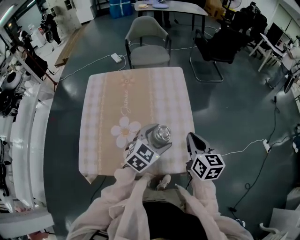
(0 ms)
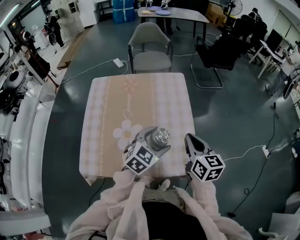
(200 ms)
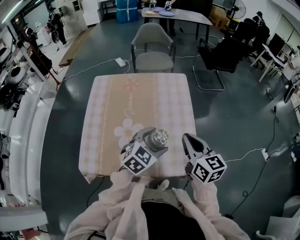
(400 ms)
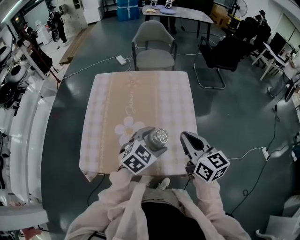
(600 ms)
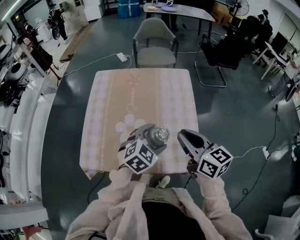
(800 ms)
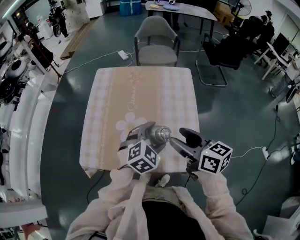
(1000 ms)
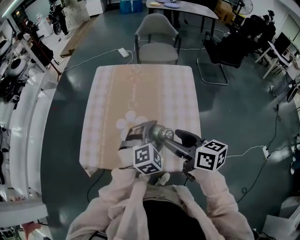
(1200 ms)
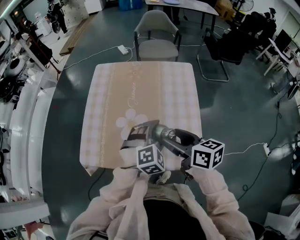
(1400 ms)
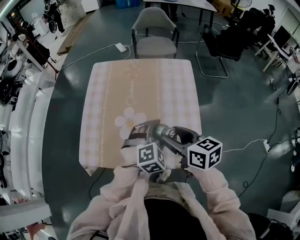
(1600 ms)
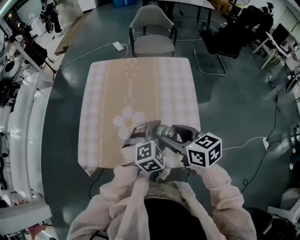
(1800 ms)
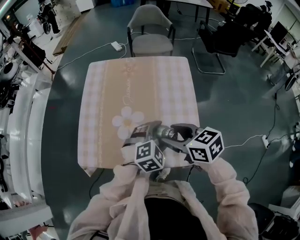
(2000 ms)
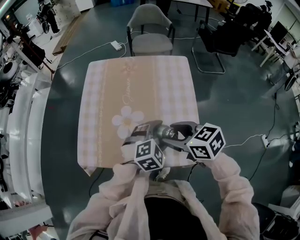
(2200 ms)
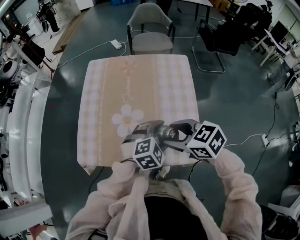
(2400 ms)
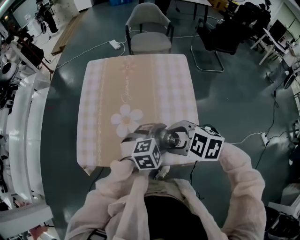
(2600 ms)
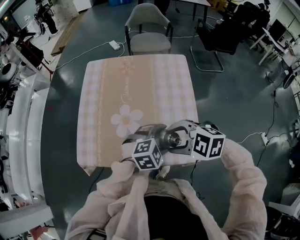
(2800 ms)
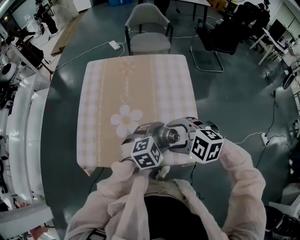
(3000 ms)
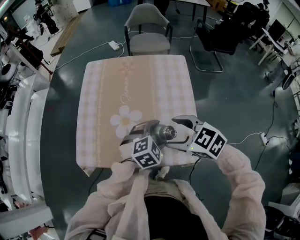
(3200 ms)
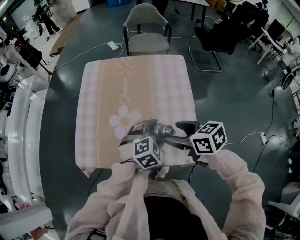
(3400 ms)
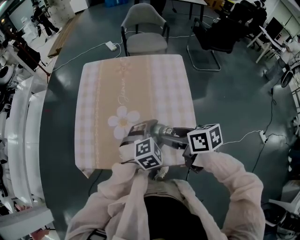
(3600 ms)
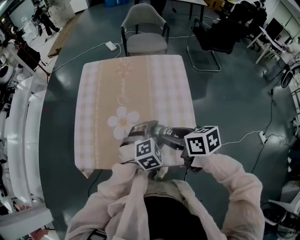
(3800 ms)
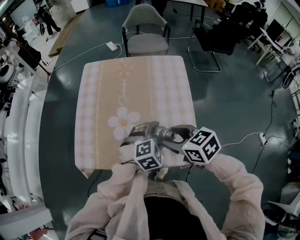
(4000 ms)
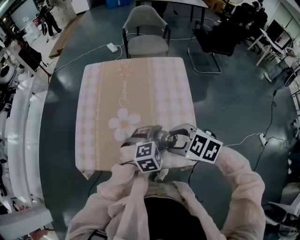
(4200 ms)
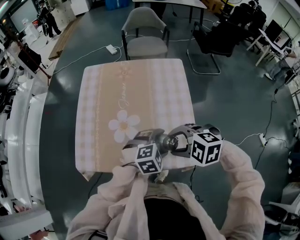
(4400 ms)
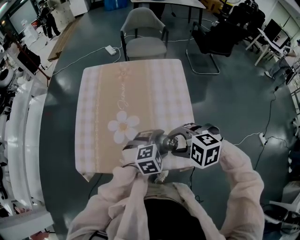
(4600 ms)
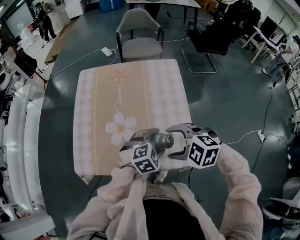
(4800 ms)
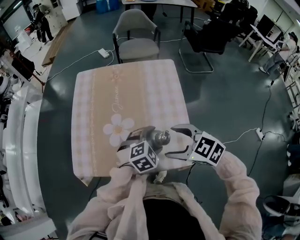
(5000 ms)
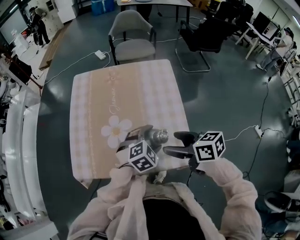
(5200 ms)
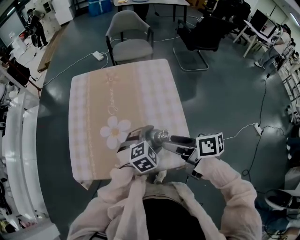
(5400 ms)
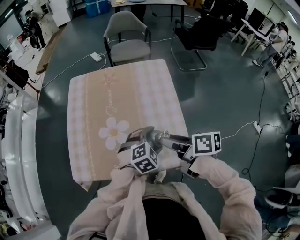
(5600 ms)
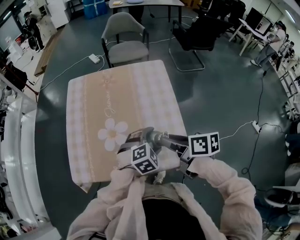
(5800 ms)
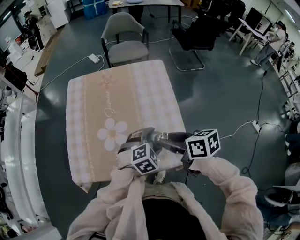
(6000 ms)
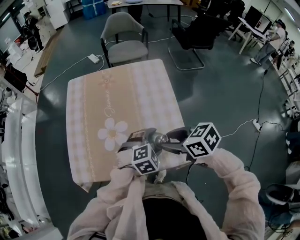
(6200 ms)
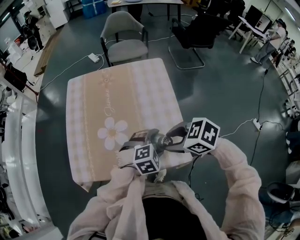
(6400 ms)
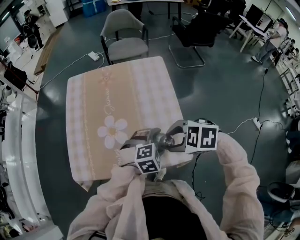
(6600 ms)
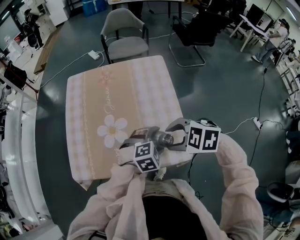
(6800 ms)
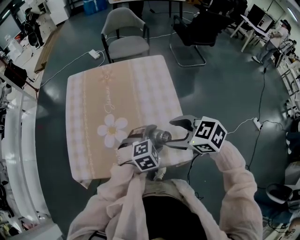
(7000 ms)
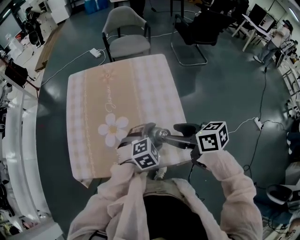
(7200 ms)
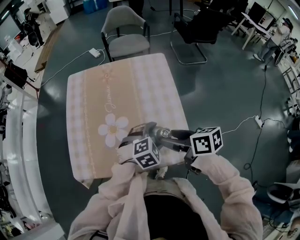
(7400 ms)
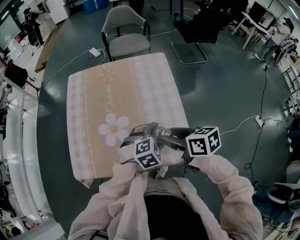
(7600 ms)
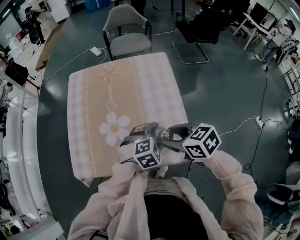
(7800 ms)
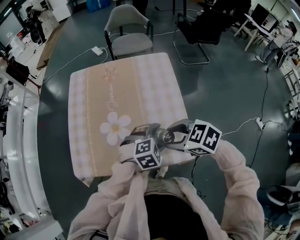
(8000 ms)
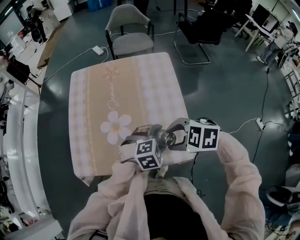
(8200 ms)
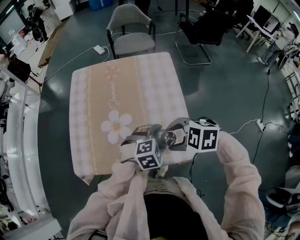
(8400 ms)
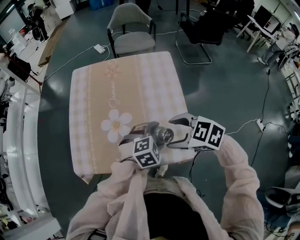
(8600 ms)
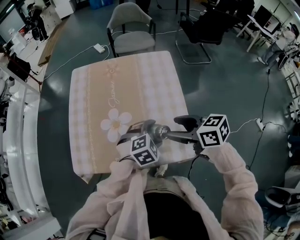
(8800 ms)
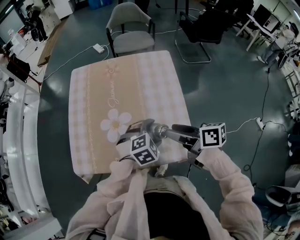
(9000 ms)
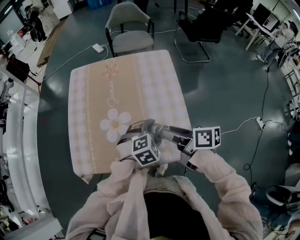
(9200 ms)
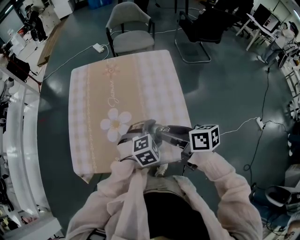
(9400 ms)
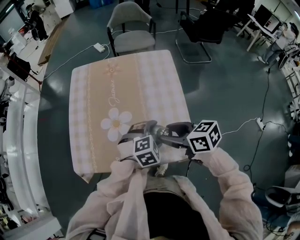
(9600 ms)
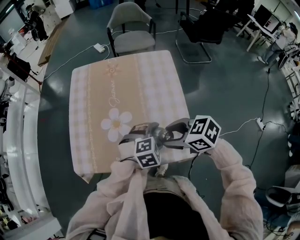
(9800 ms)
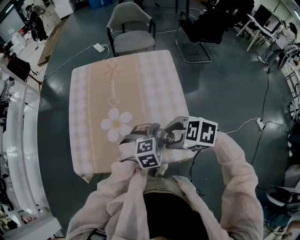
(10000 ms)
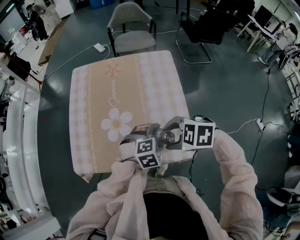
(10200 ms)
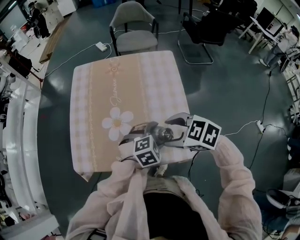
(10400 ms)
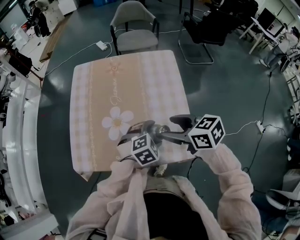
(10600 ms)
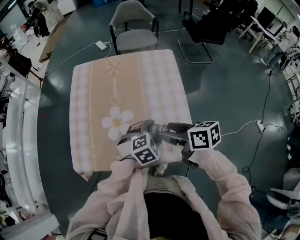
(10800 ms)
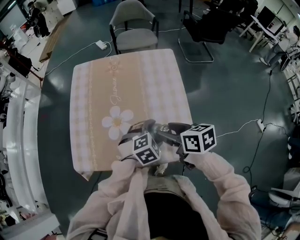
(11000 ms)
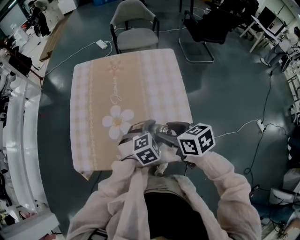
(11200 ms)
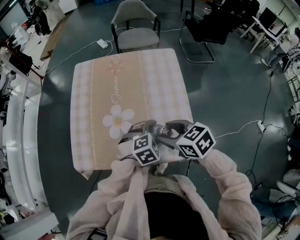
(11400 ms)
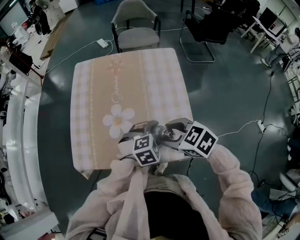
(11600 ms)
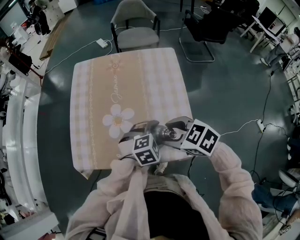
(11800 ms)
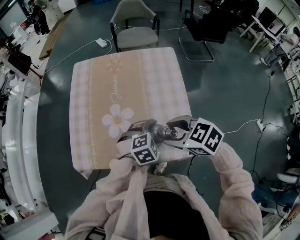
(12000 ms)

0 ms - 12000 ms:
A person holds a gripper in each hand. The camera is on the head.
0 ms - 1600 ms: The right gripper changes place by about 15 cm, changes its angle by roughly 30 degrees, and opens its fingers. The left gripper shifts by approximately 5 cm, and changes its angle by about 30 degrees.
1600 ms - 3000 ms: The left gripper moves roughly 5 cm, and turns by some 20 degrees. Meanwhile the right gripper rotates around the line of its fingers by about 60 degrees, counterclockwise from behind.
4400 ms - 6000 ms: The right gripper changes place by about 5 cm, rotates around the line of its fingers by approximately 80 degrees, clockwise from behind, and opens and closes again.
9000 ms - 10400 ms: The right gripper twists some 60 degrees counterclockwise, seen from behind.

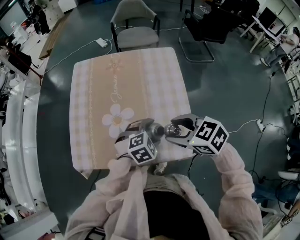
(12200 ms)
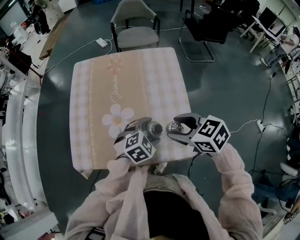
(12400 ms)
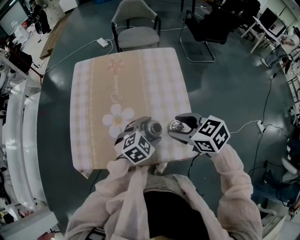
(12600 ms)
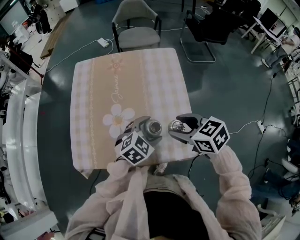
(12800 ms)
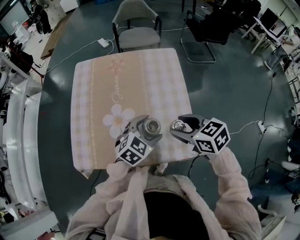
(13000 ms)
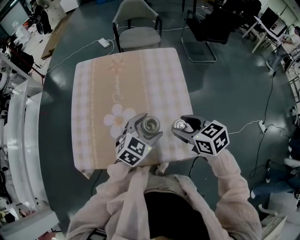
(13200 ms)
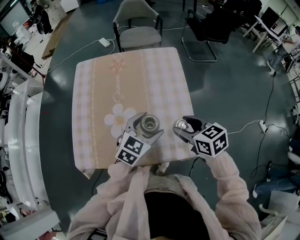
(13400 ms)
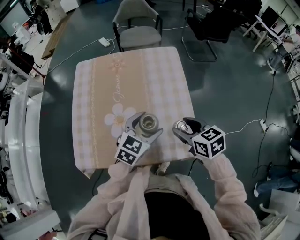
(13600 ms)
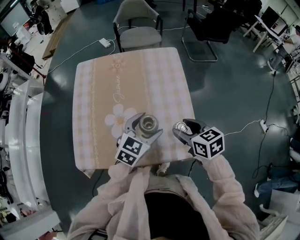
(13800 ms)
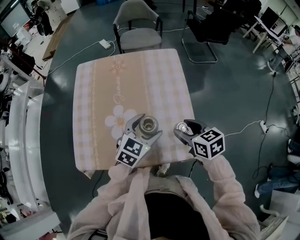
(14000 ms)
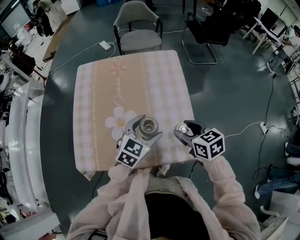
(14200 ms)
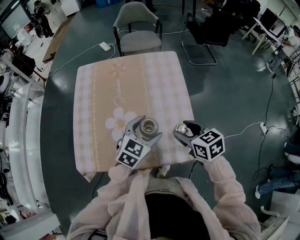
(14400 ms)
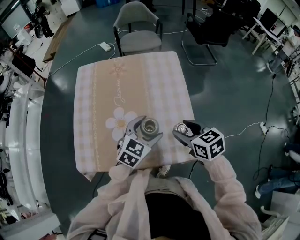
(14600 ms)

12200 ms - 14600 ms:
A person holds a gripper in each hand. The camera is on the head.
12200 ms - 13400 ms: The left gripper heads upward, covering some 5 cm, and turns by roughly 40 degrees. Meanwhile the right gripper changes place by roughly 5 cm, and rotates roughly 30 degrees.
13400 ms - 14600 ms: The grippers stay close to where they were, moving slightly.

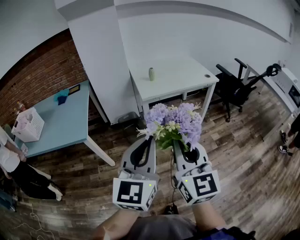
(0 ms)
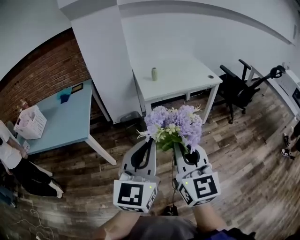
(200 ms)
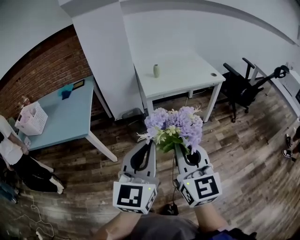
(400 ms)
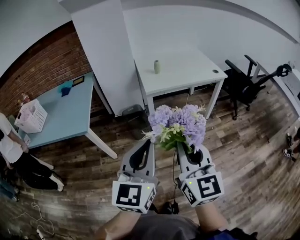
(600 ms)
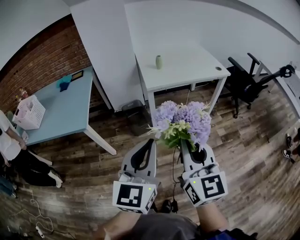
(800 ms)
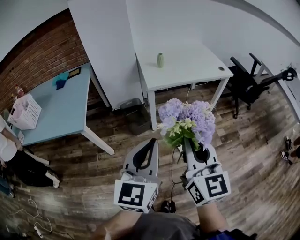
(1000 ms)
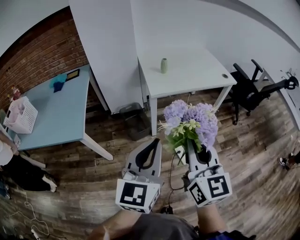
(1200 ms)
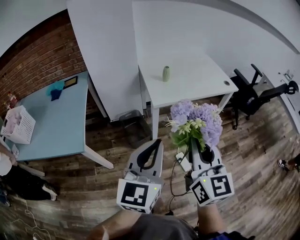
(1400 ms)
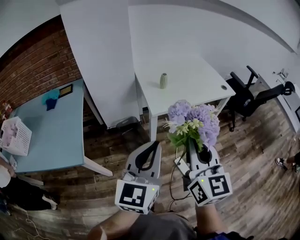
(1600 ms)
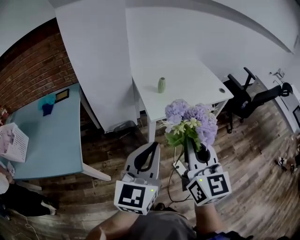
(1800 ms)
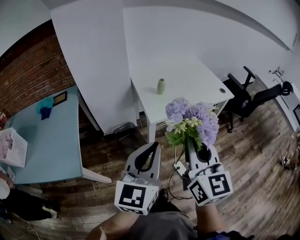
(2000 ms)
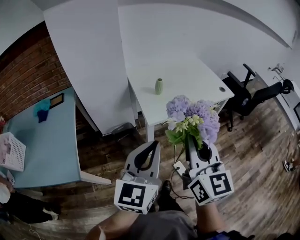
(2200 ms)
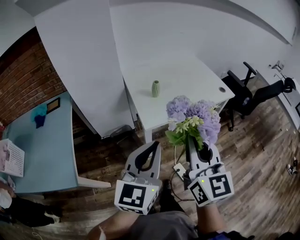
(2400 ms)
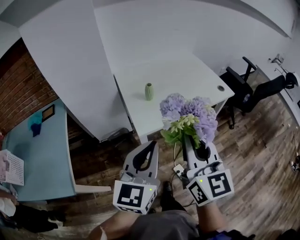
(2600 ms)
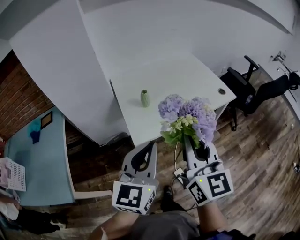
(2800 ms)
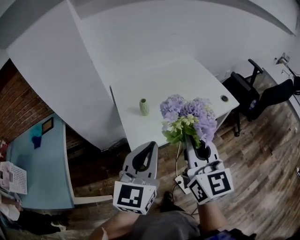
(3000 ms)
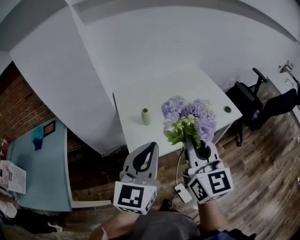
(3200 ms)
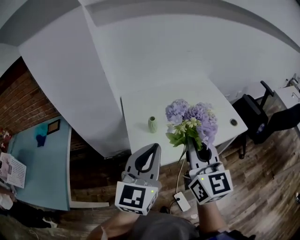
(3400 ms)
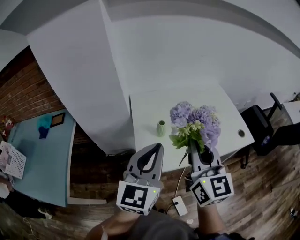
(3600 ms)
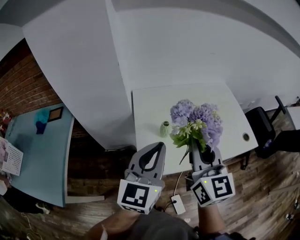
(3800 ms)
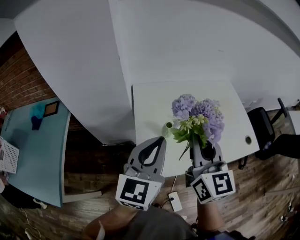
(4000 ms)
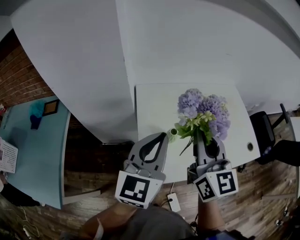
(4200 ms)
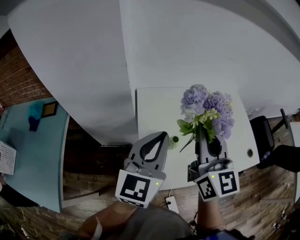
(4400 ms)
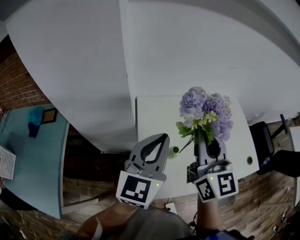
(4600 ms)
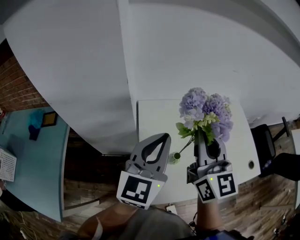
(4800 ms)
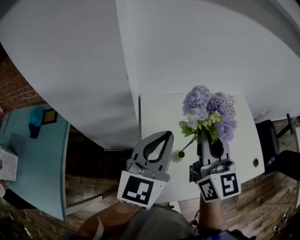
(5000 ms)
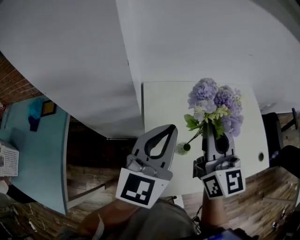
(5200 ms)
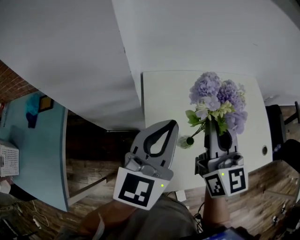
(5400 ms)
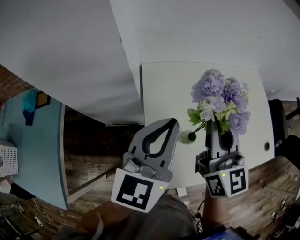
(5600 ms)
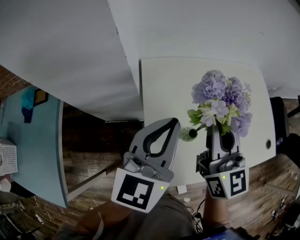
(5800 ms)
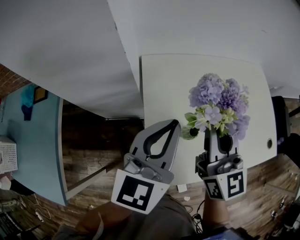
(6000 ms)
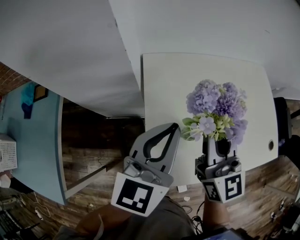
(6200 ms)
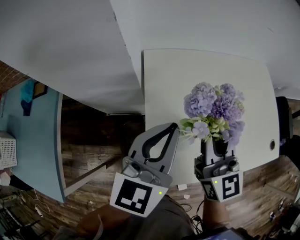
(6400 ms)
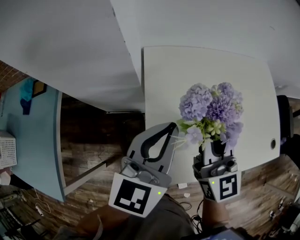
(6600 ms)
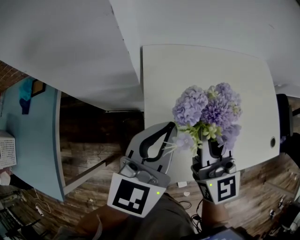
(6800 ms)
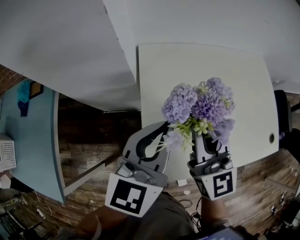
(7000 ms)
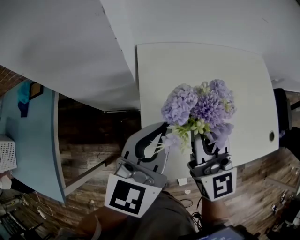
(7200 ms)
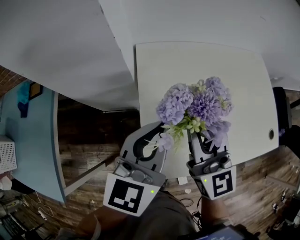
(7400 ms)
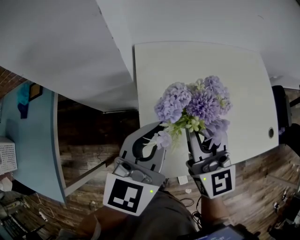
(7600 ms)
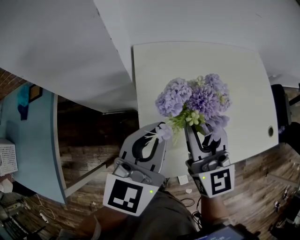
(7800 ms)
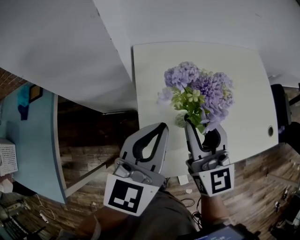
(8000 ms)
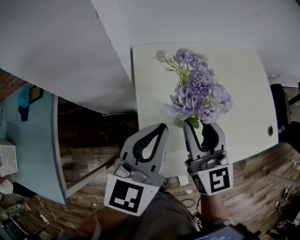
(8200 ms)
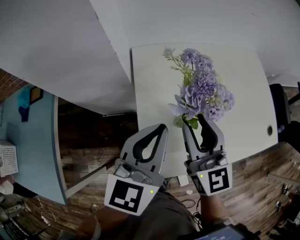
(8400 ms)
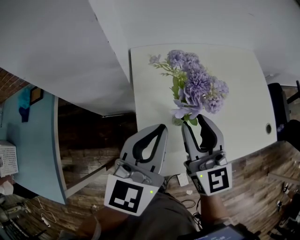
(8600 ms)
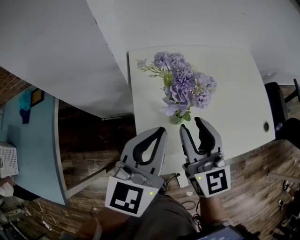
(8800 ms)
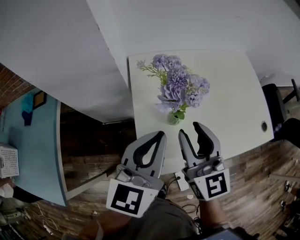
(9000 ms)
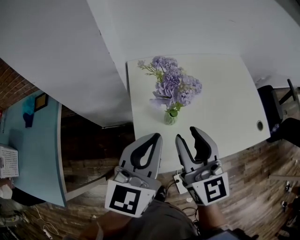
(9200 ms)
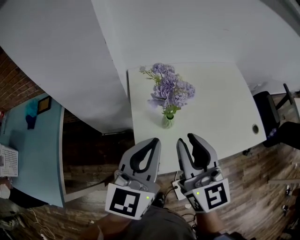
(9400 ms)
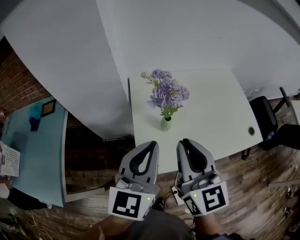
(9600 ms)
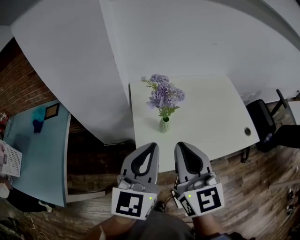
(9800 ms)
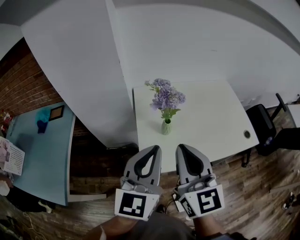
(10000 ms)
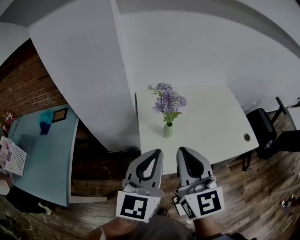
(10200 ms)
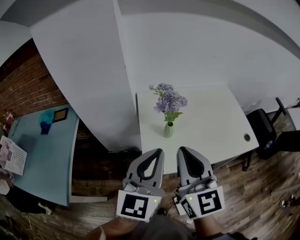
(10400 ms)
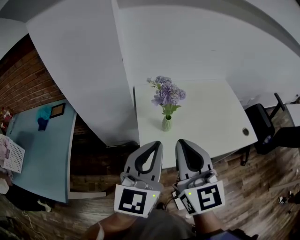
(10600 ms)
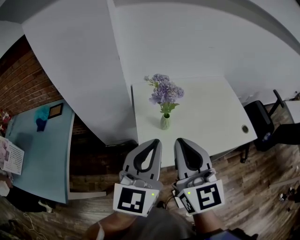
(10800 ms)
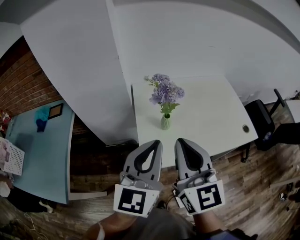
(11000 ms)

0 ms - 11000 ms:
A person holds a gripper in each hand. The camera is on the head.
0 ms - 1600 ms: Both grippers travel together forward, roughly 25 cm.
1600 ms - 3200 ms: The grippers both shift forward by some 30 cm.
3200 ms - 4800 ms: Both grippers travel together forward and to the left, roughly 30 cm.
4800 ms - 6200 ms: The grippers both shift downward by some 10 cm.
6200 ms - 7800 ms: The right gripper moves some 5 cm, and opens up.
7800 ms - 9400 ms: Both grippers travel together backward and upward, roughly 10 cm.
9400 ms - 11000 ms: Both grippers move backward and upward, about 10 cm. The right gripper closes up.
